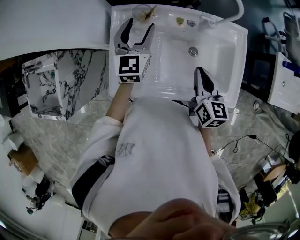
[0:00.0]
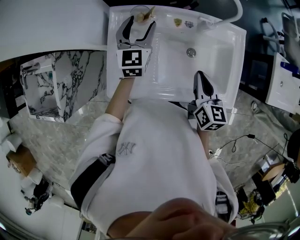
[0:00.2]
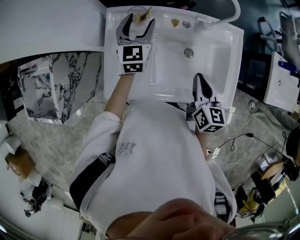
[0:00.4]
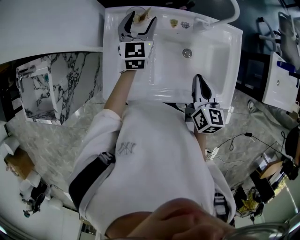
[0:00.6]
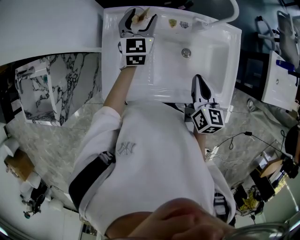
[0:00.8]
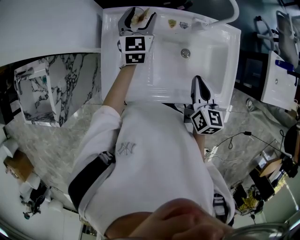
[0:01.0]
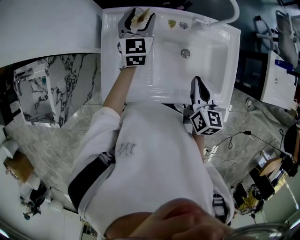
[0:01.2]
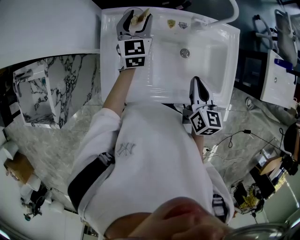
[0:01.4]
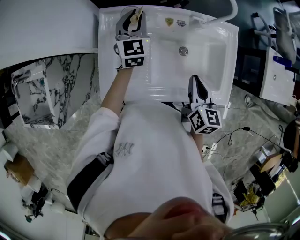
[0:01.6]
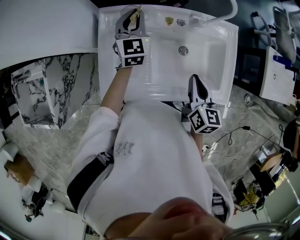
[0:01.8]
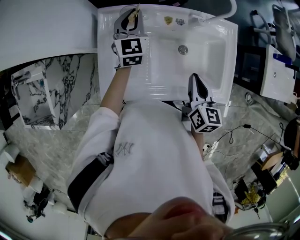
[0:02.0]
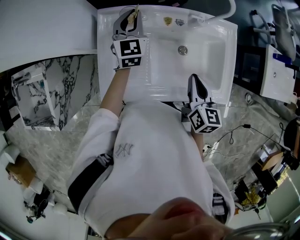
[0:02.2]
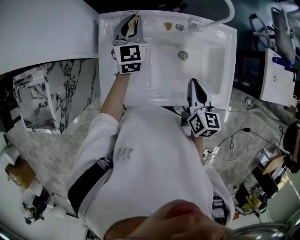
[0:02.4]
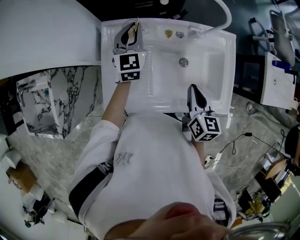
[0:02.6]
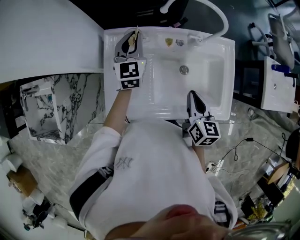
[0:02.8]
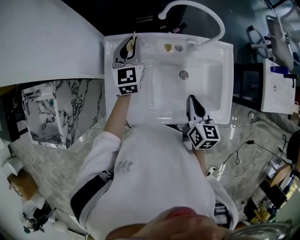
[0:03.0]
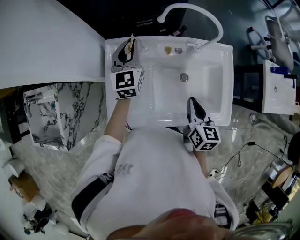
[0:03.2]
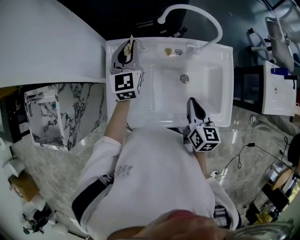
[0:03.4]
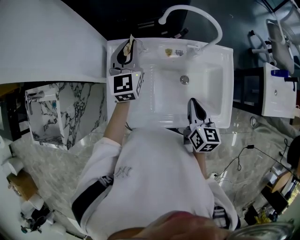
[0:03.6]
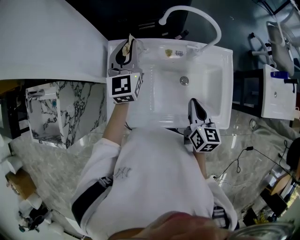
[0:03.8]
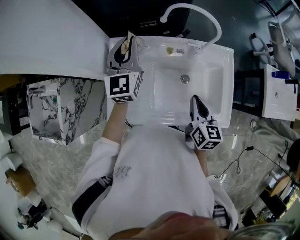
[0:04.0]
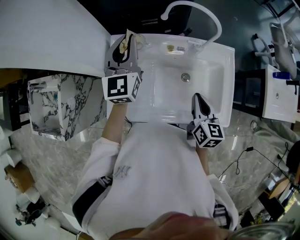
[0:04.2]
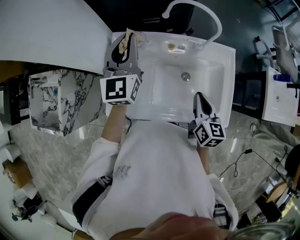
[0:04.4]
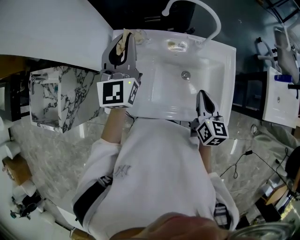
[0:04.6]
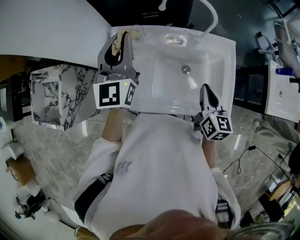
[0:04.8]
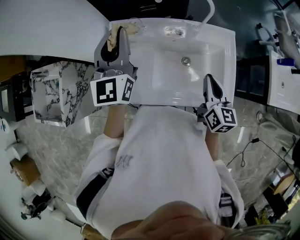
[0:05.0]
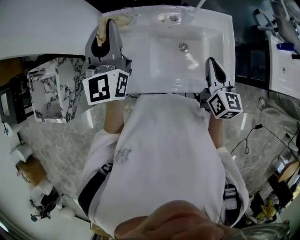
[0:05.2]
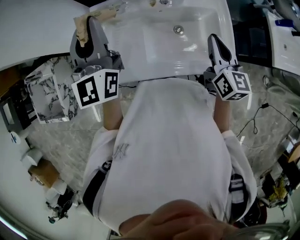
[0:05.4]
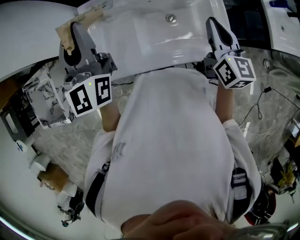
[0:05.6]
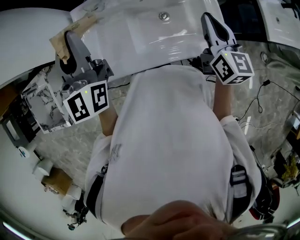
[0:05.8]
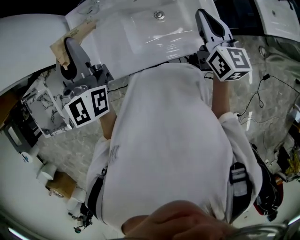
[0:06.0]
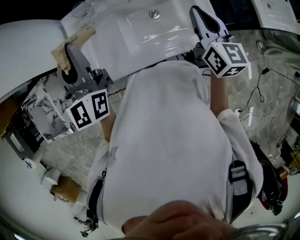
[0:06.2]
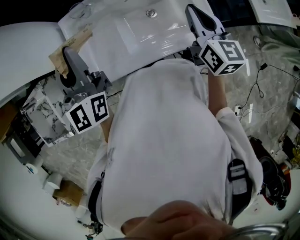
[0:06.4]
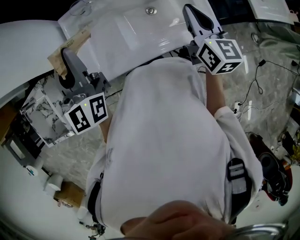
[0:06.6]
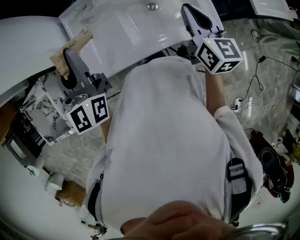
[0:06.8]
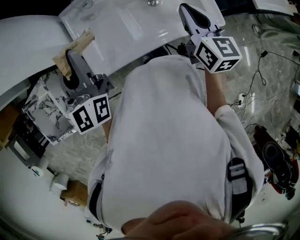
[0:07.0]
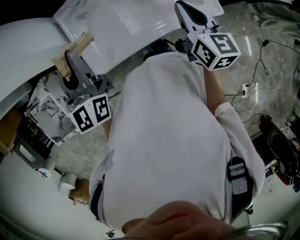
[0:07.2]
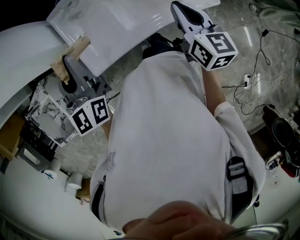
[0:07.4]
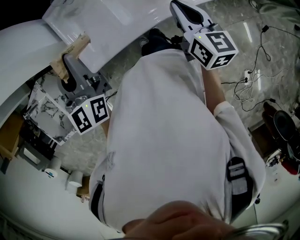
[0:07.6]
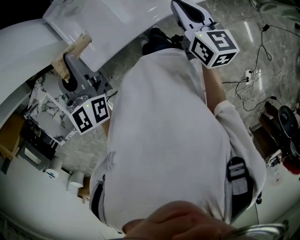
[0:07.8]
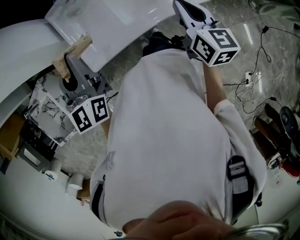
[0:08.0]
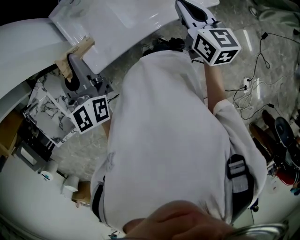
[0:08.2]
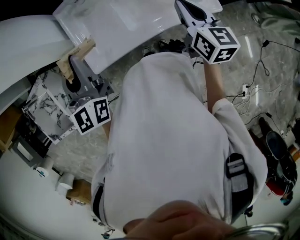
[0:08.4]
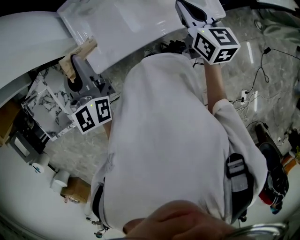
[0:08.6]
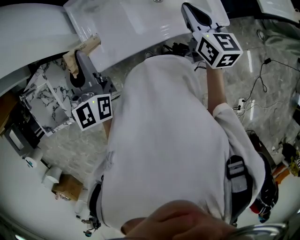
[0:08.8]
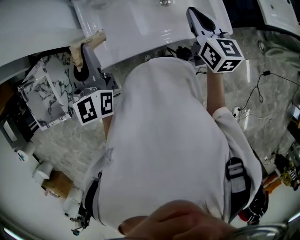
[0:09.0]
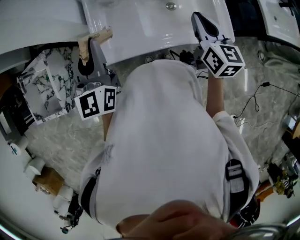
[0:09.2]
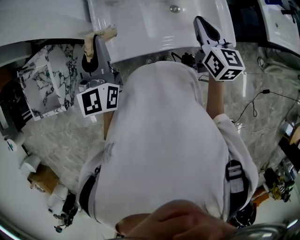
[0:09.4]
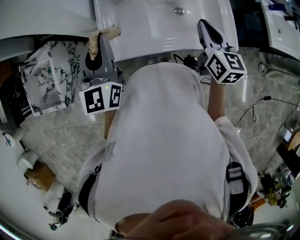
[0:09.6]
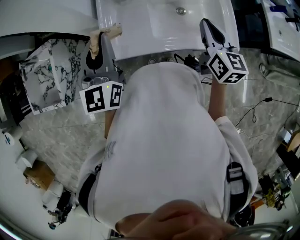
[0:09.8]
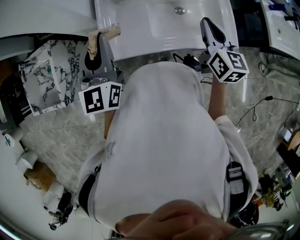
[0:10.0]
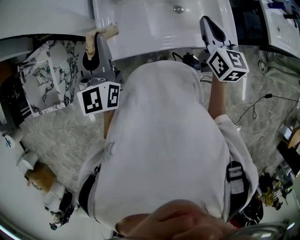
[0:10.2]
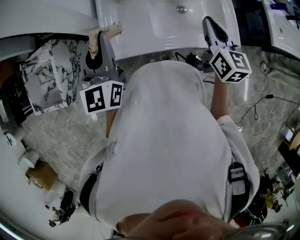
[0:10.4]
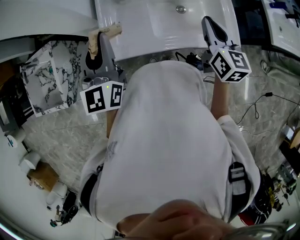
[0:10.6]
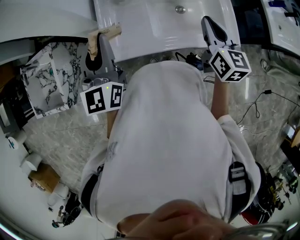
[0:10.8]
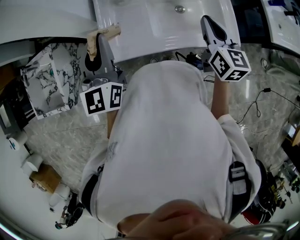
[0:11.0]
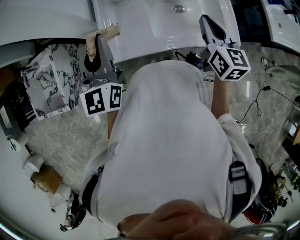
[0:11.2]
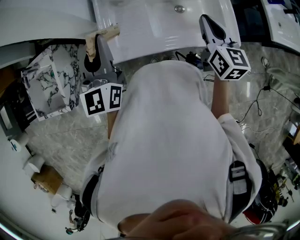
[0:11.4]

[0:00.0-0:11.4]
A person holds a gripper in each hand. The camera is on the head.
0:00.0 to 0:01.4: The left gripper is displaced forward by about 5 cm.
0:01.4 to 0:02.8: The left gripper closes up.
0:02.8 to 0:04.2: The left gripper heads upward and backward, covering about 15 cm.
0:04.2 to 0:05.6: The left gripper heads backward and upward, covering approximately 15 cm. The right gripper is displaced to the right and upward by some 10 cm.
0:05.6 to 0:07.2: The left gripper is displaced backward and downward by approximately 10 cm. The right gripper shifts roughly 10 cm backward and to the left.
0:07.2 to 0:10.0: There are only small adjustments of the grippers.
0:10.0 to 0:11.4: The two grippers keep their place.

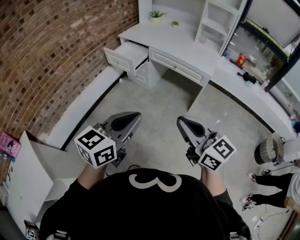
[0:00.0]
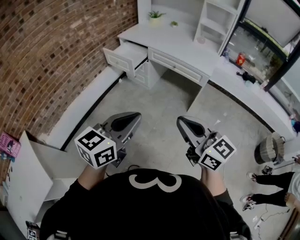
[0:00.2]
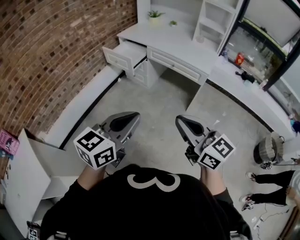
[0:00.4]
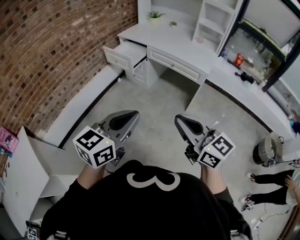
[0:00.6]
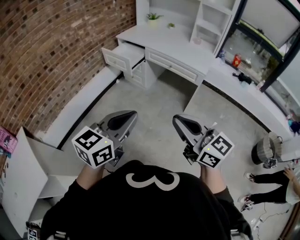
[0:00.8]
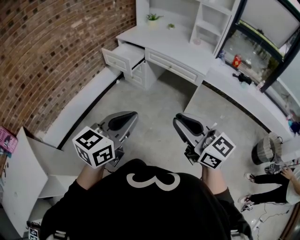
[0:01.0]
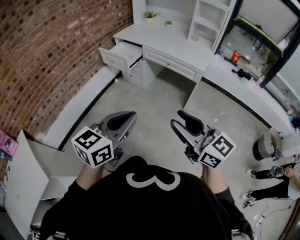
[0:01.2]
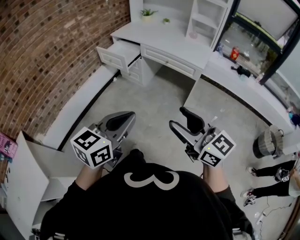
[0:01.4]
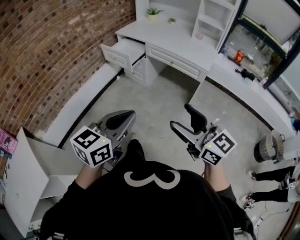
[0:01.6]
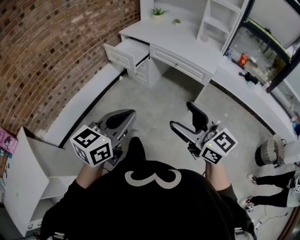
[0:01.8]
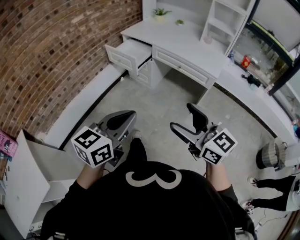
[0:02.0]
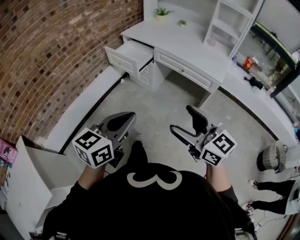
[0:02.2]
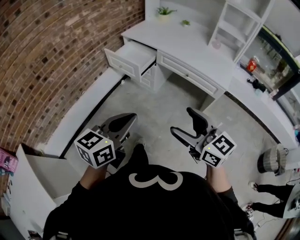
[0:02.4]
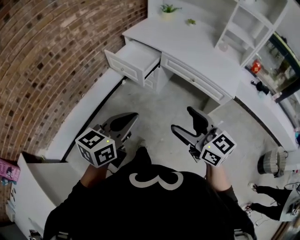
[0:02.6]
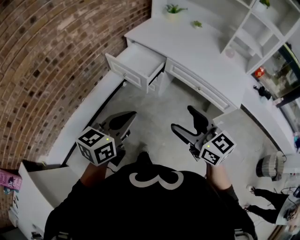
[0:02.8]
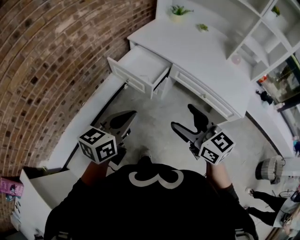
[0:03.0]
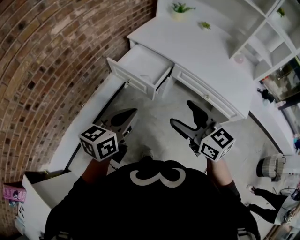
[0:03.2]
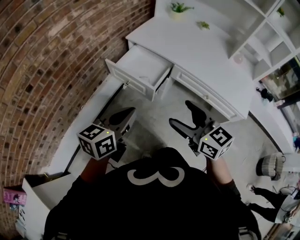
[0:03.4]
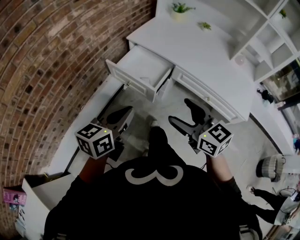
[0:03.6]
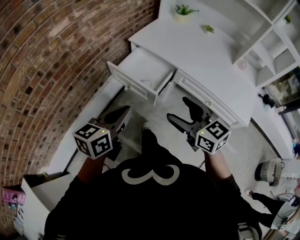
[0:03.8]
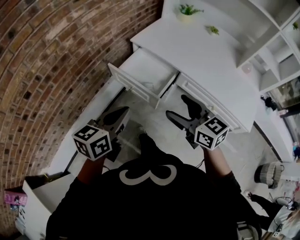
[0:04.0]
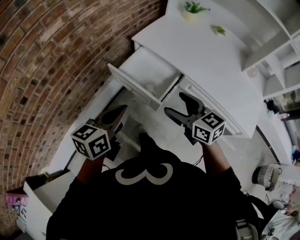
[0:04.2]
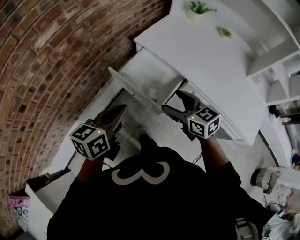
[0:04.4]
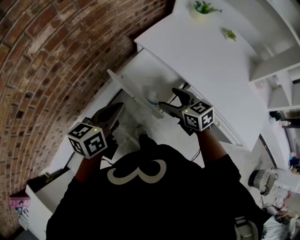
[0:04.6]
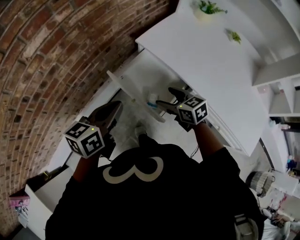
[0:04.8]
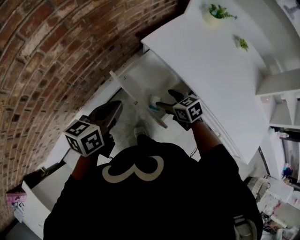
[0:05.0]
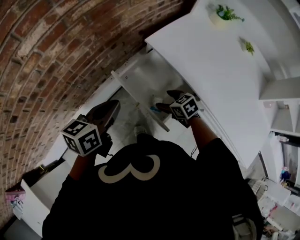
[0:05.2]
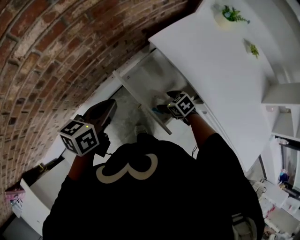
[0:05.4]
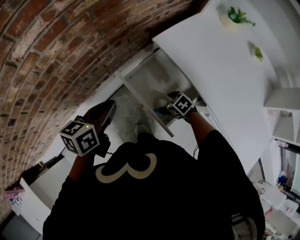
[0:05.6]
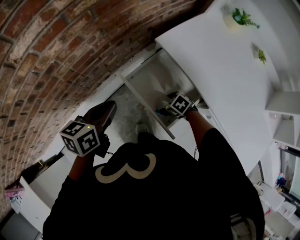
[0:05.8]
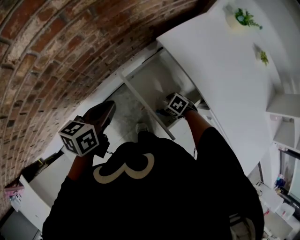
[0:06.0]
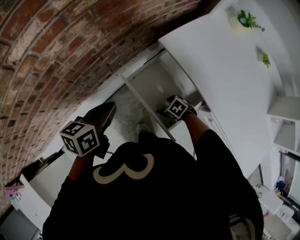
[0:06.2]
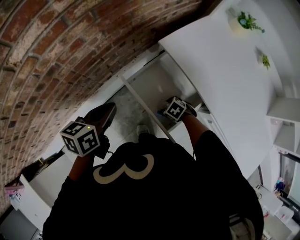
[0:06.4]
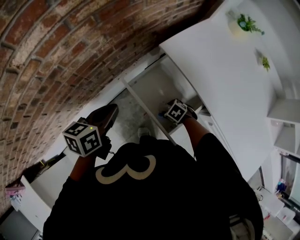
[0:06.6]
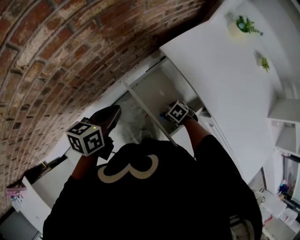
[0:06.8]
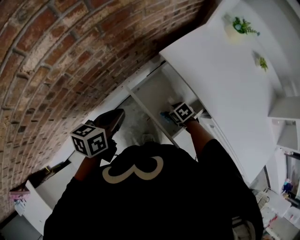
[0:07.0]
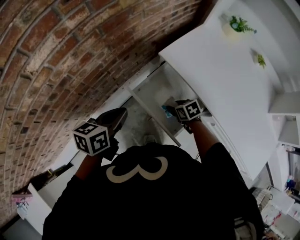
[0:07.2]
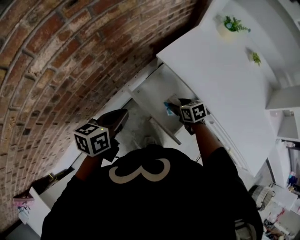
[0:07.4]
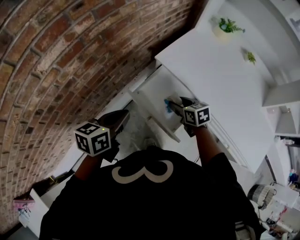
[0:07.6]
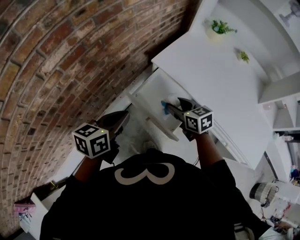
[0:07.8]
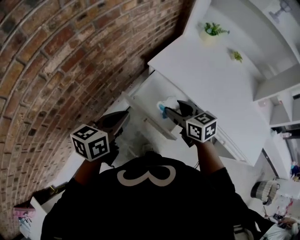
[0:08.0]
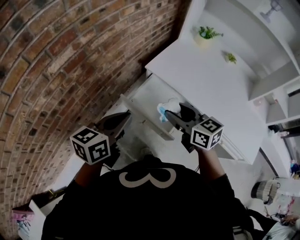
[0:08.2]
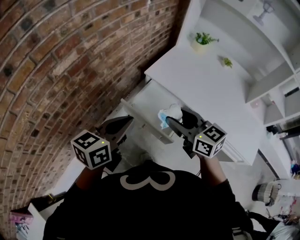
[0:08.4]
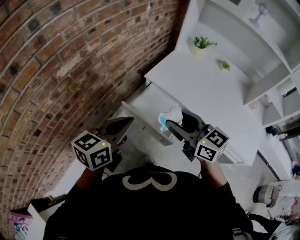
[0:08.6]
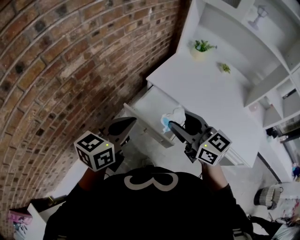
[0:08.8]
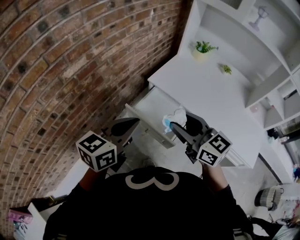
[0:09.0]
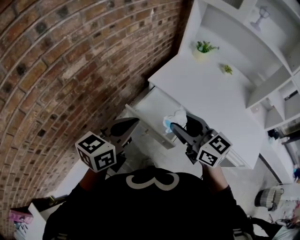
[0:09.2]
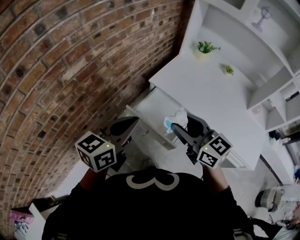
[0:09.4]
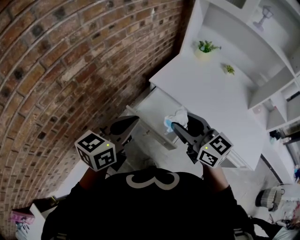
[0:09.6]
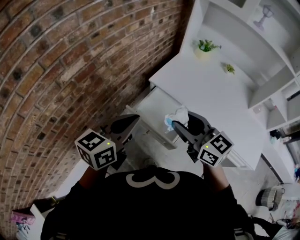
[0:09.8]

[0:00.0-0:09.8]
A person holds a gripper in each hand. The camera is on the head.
0:00.0 to 0:01.4: The left gripper changes place by about 5 cm. The right gripper ends up some 5 cm from where it was, and opens.
0:01.4 to 0:02.8: The pair of grippers is taken forward, about 40 cm. The right gripper opens.
0:02.8 to 0:04.2: Both grippers move forward, about 25 cm.
0:04.2 to 0:05.6: The left gripper moves approximately 20 cm; the right gripper goes roughly 30 cm downward, and points its fingers about 40 degrees further downward.
0:05.6 to 0:07.0: The right gripper closes its fingers.
0:07.0 to 0:08.4: The right gripper shifts some 40 cm upward, and points its fingers approximately 50 degrees further upward, while the left gripper heads upward, covering roughly 15 cm, and turns by some 30 degrees.

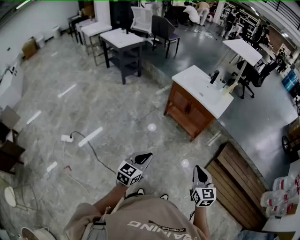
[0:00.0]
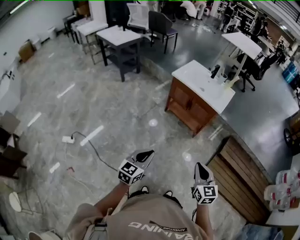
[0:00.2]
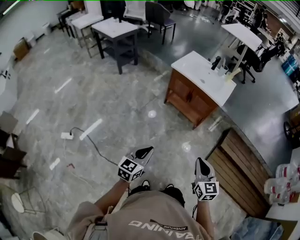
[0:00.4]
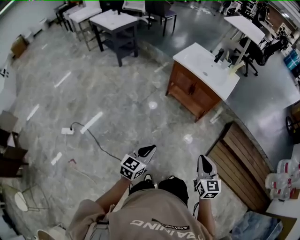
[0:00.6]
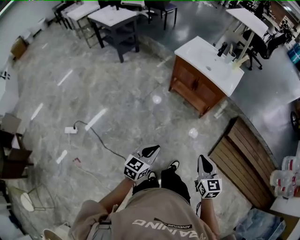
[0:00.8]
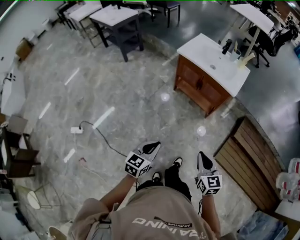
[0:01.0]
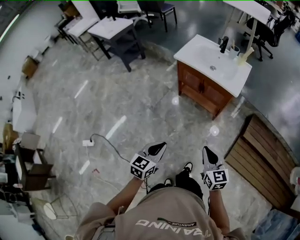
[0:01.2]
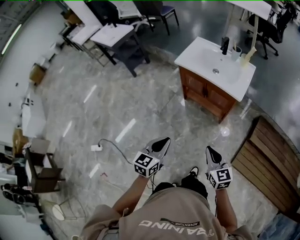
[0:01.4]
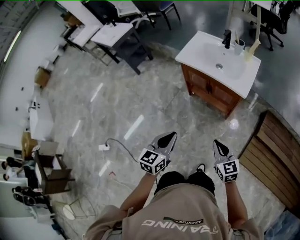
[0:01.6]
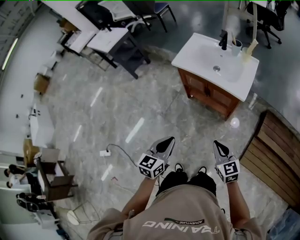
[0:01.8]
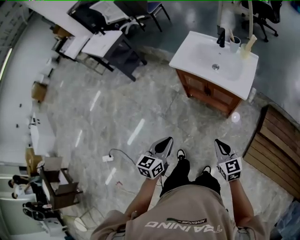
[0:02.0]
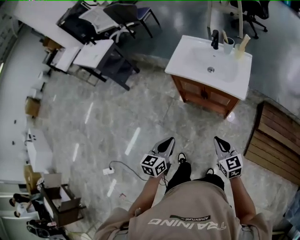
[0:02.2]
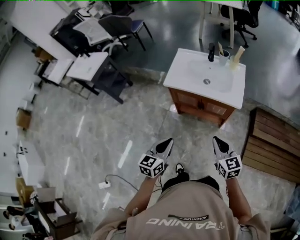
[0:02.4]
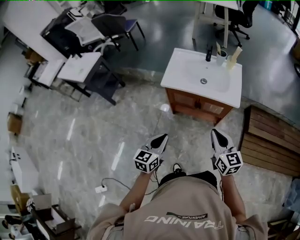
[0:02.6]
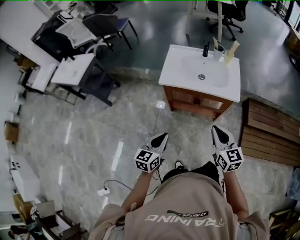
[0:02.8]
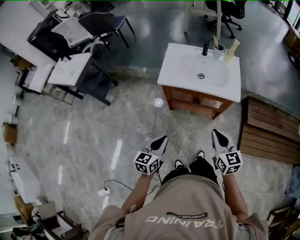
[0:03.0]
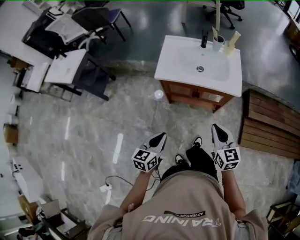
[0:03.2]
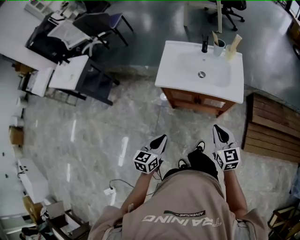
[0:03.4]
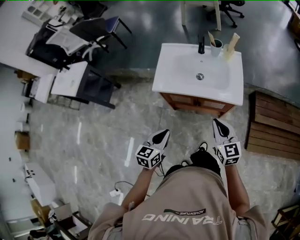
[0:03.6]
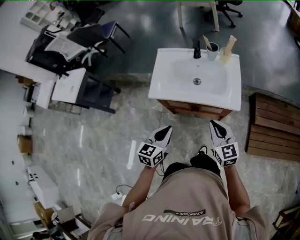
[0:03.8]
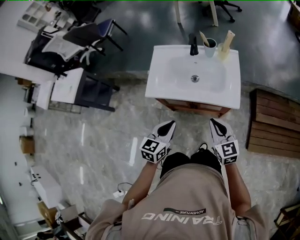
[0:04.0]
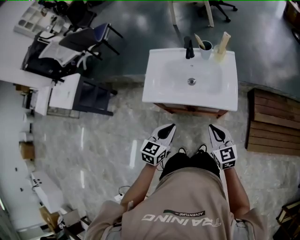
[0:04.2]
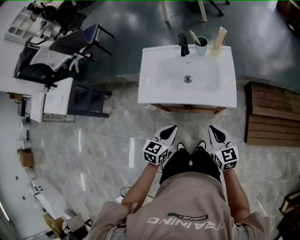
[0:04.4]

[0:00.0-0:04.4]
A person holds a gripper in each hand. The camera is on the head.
0:00.0 to 0:01.4: Both grippers move forward, approximately 20 cm.
0:01.4 to 0:03.0: Both grippers travel together forward and to the left, roughly 25 cm. The right gripper swivels approximately 20 degrees.
0:03.0 to 0:04.4: The left gripper shifts some 25 cm forward and to the right, while the right gripper is displaced forward and downward by some 15 cm.
